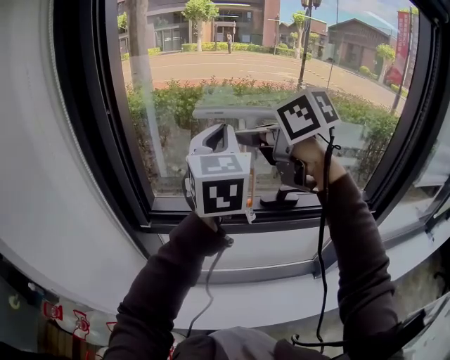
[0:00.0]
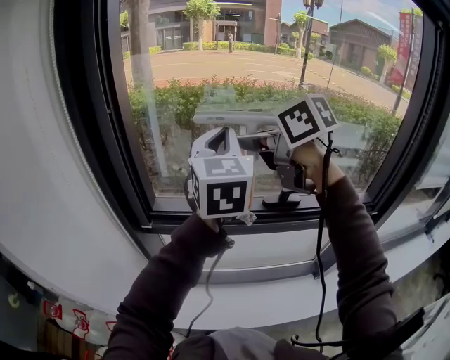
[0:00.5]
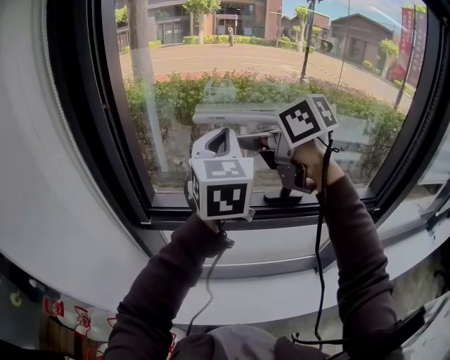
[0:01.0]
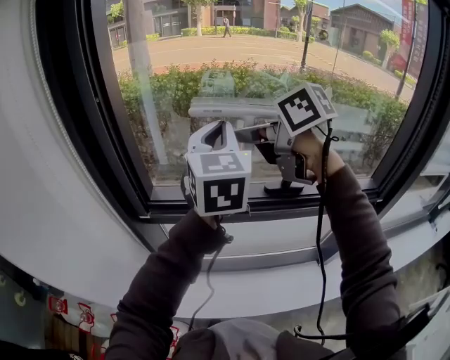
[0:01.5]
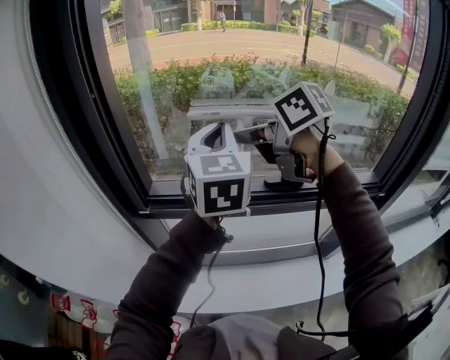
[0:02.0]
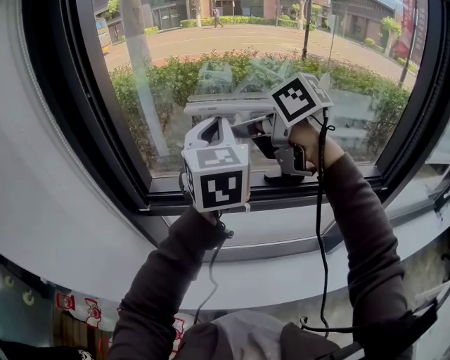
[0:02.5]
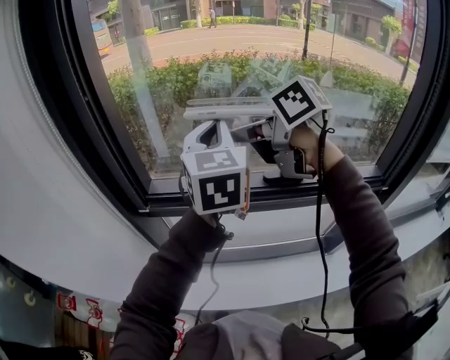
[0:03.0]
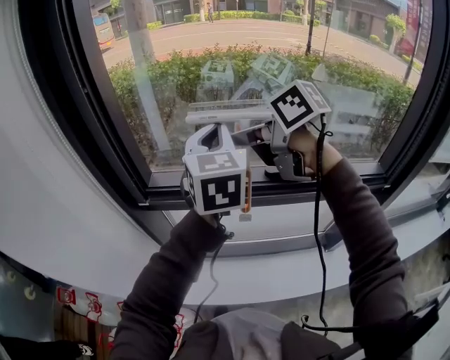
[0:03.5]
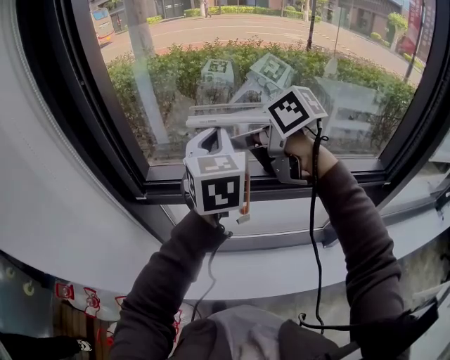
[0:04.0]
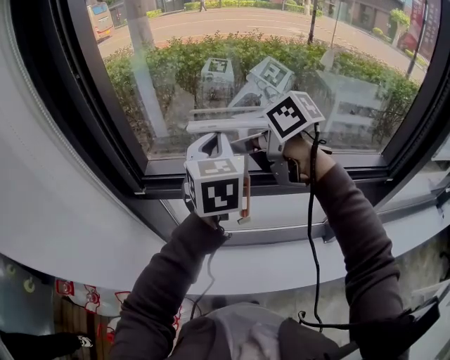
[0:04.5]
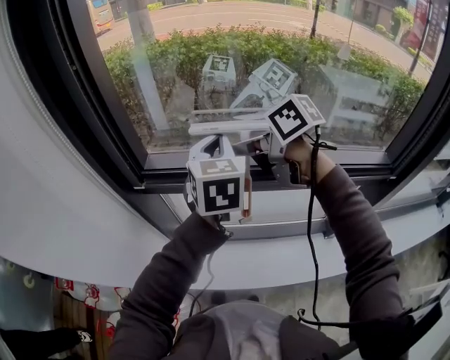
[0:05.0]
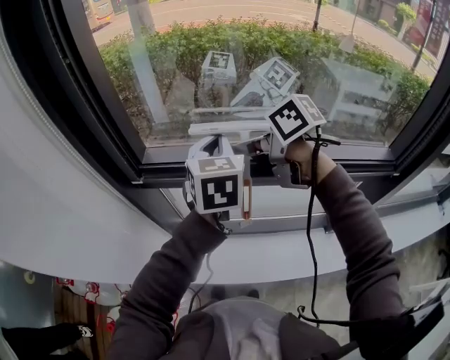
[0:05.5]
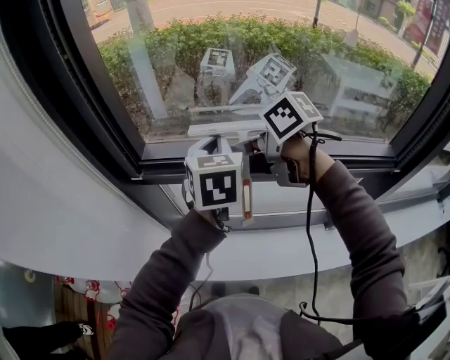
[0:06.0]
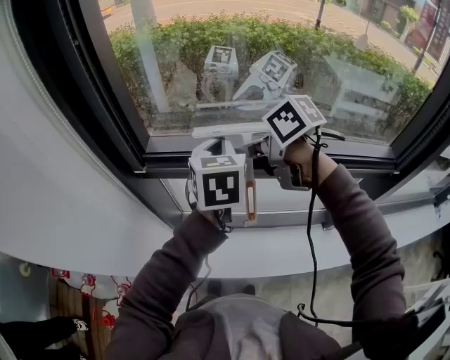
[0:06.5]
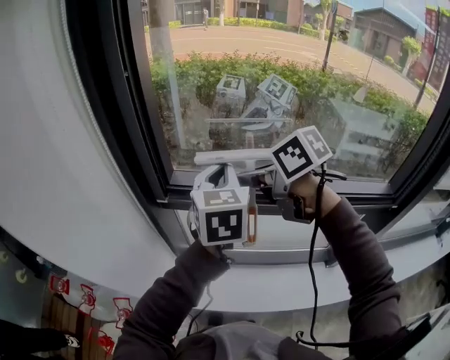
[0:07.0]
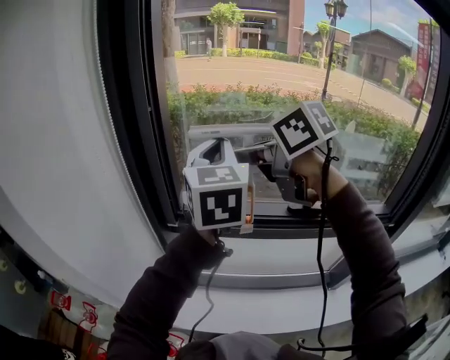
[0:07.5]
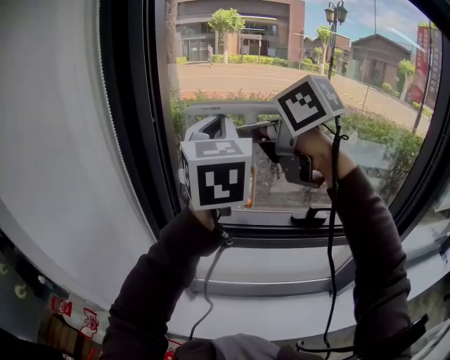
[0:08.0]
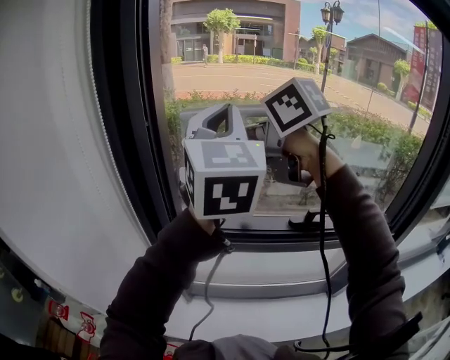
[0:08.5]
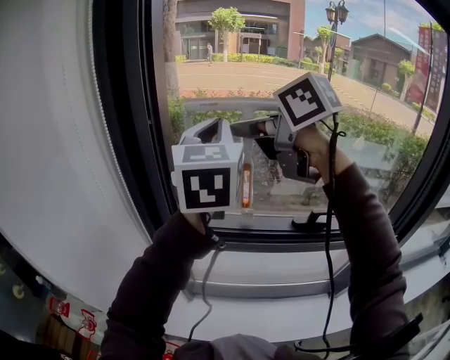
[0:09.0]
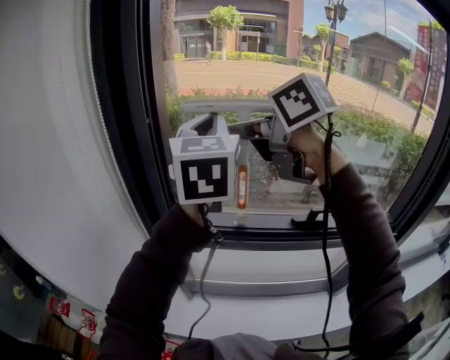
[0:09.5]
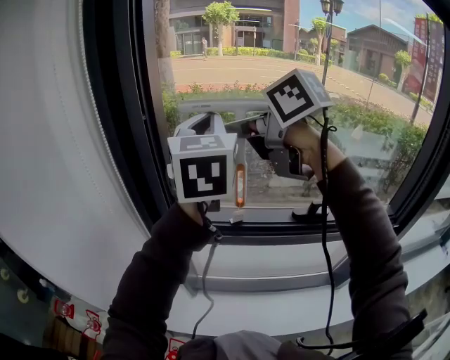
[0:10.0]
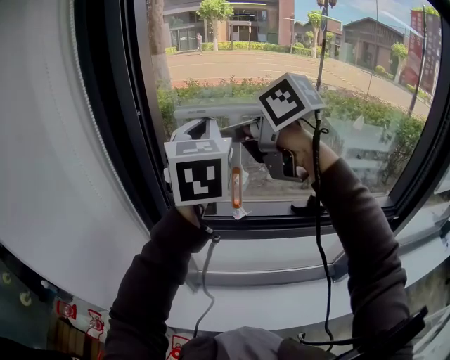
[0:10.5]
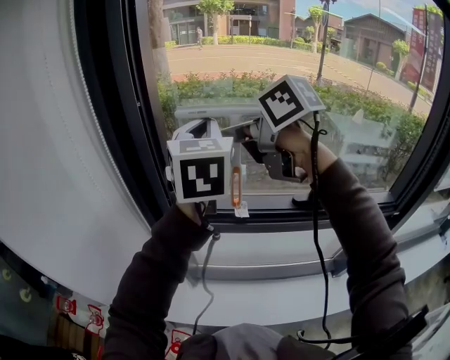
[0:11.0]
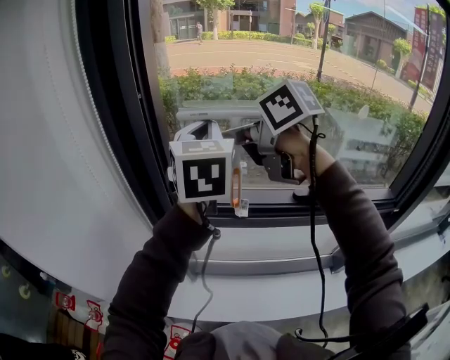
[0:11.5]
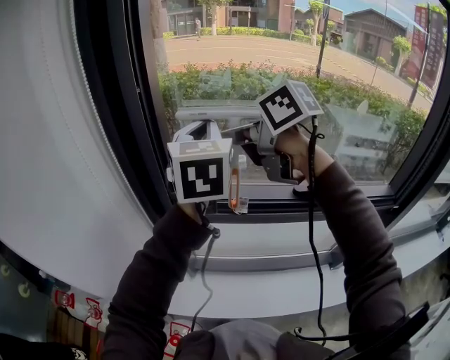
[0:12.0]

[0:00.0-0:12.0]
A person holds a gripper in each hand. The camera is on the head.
0:00.0 to 0:02.0: Both grippers move downward, roughly 5 cm.
0:02.0 to 0:04.0: Both grippers move downward, approximately 5 cm.
0:04.0 to 0:06.0: The two grippers go roughly 10 cm downward.
0:06.0 to 0:08.0: The grippers both shift upward by approximately 25 cm. The right gripper changes its angle by roughly 30 degrees. The left gripper rotates approximately 30 degrees.
0:08.0 to 0:10.0: The grippers stay close to where they were, moving slightly.
0:10.0 to 0:12.0: The grippers both shift downward by some 10 cm.

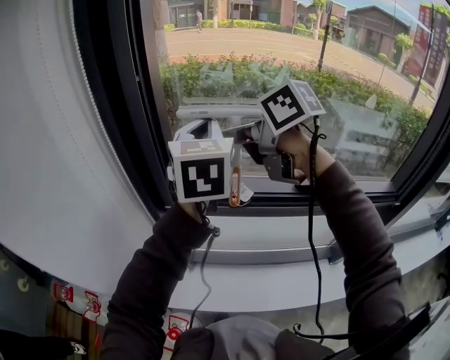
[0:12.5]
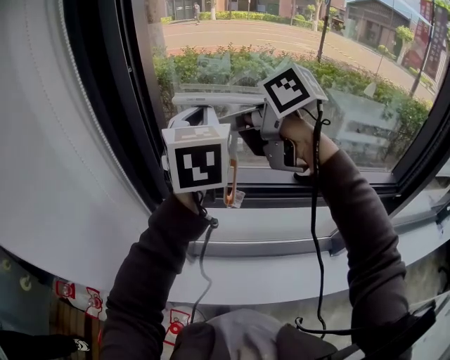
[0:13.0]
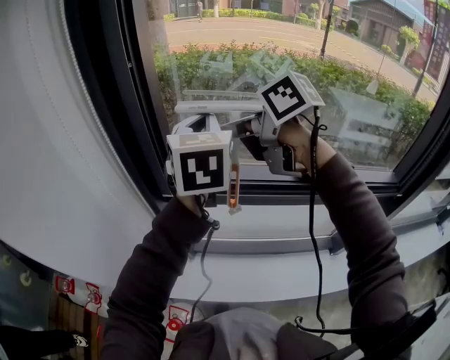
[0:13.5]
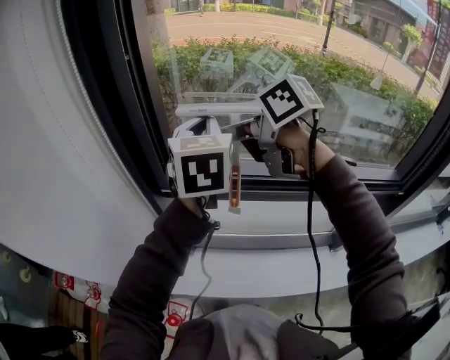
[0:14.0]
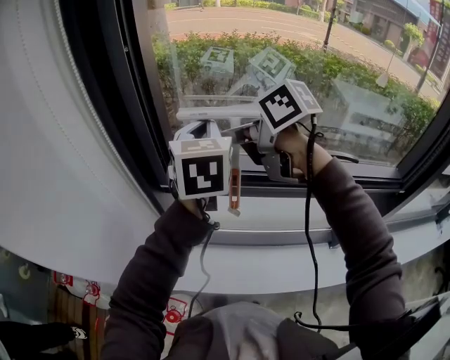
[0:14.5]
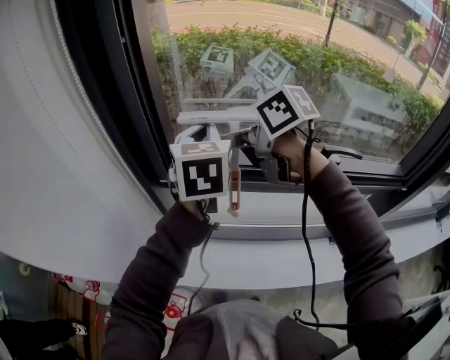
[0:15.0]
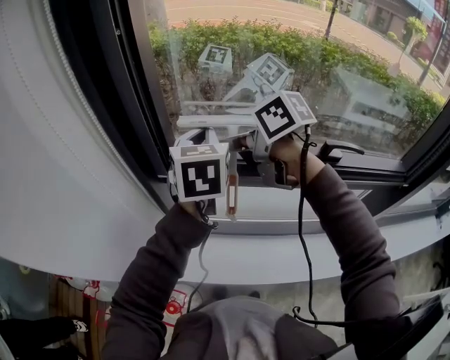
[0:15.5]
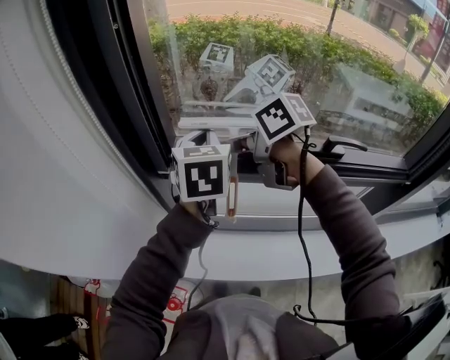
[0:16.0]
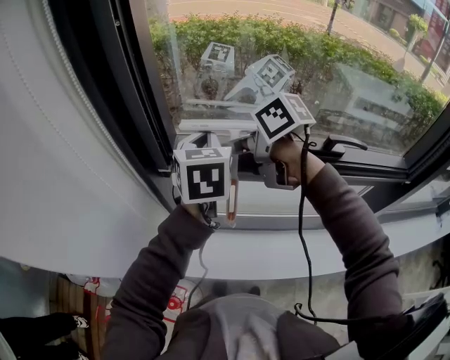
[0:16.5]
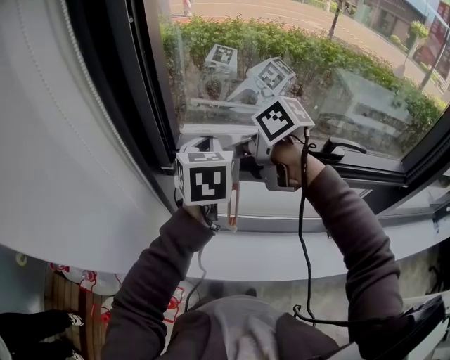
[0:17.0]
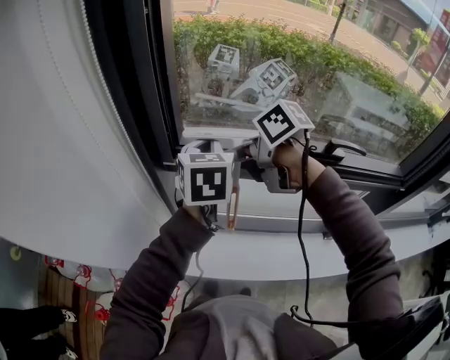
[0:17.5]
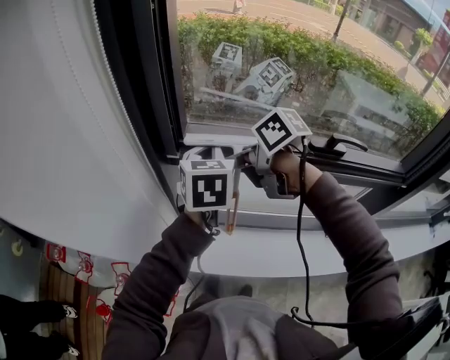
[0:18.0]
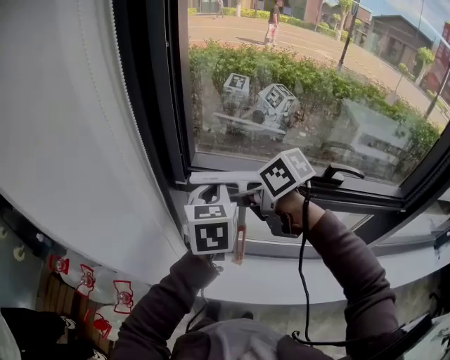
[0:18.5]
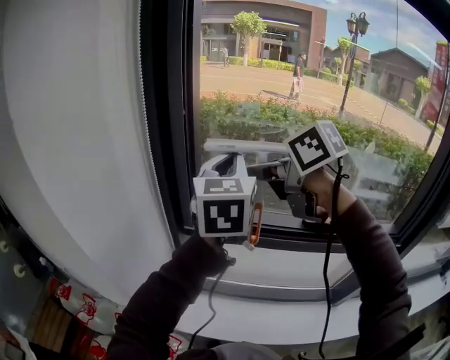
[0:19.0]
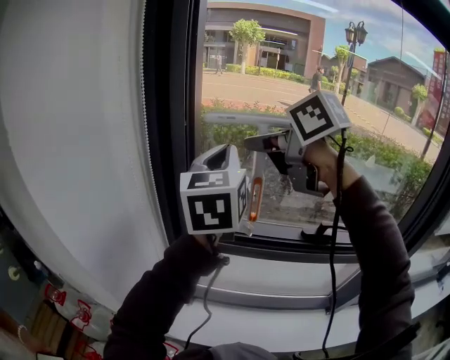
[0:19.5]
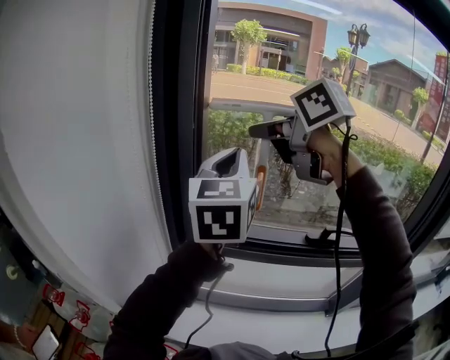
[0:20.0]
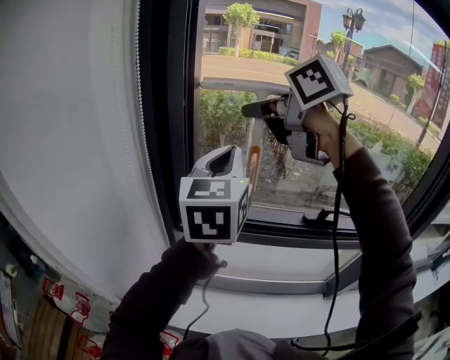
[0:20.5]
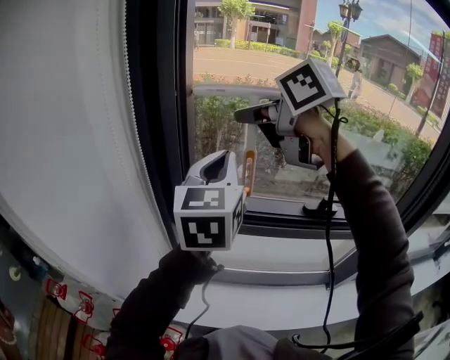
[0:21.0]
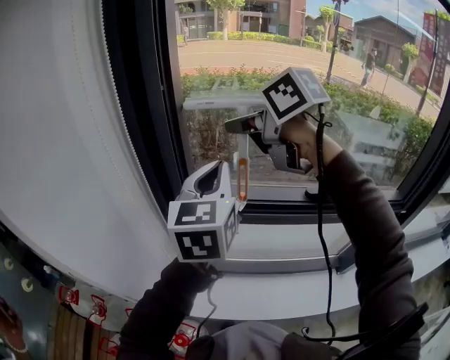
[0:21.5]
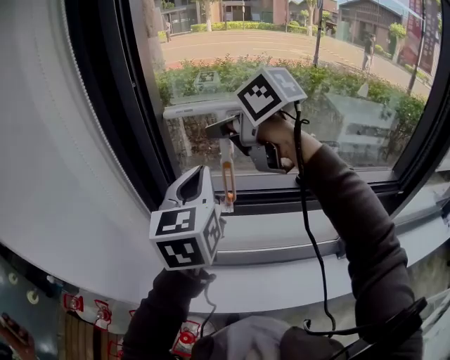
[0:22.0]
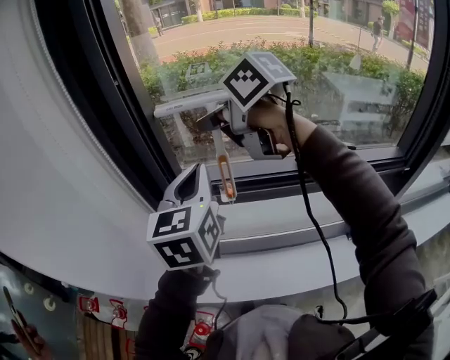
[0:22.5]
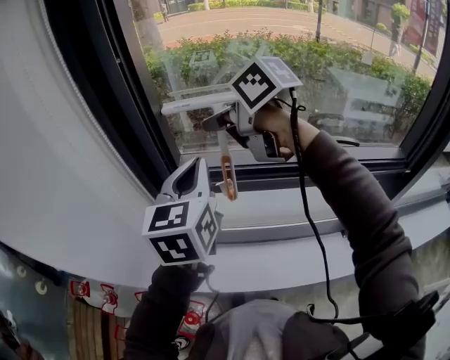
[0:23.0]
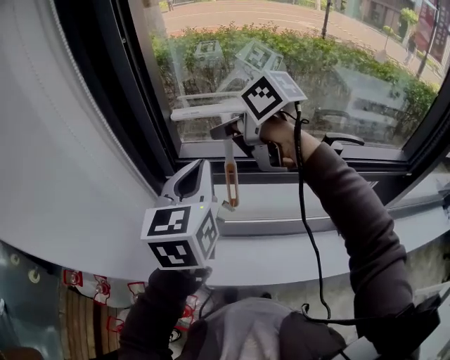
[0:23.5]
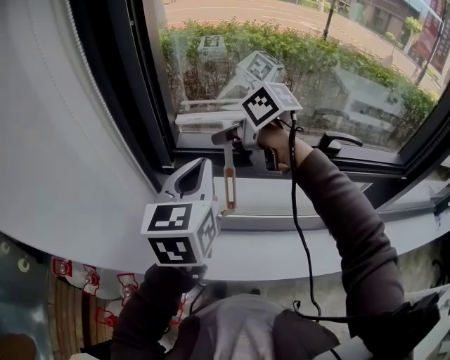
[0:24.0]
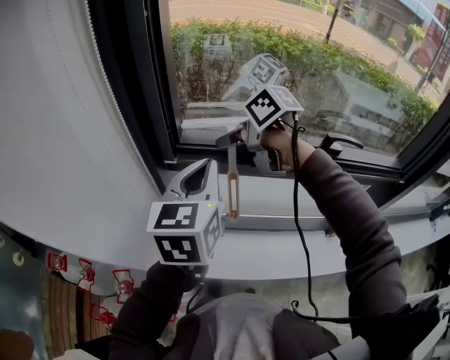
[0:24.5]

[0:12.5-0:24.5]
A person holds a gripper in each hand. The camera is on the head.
0:12.5 to 0:14.5: The grippers both shift downward by roughly 5 cm.
0:14.5 to 0:16.5: The grippers both shift downward by about 10 cm.
0:16.5 to 0:18.5: The right gripper moves backward, about 5 cm; the left gripper ends up about 10 cm from where it was.
0:18.5 to 0:20.5: Both grippers travel together upward, some 25 cm. The left gripper rotates approximately 20 degrees; the right gripper turns by some 30 degrees.
0:20.5 to 0:22.5: Both grippers travel together downward, some 10 cm.
0:22.5 to 0:24.5: The right gripper moves downward, about 15 cm. The left gripper heads downward, covering about 5 cm.

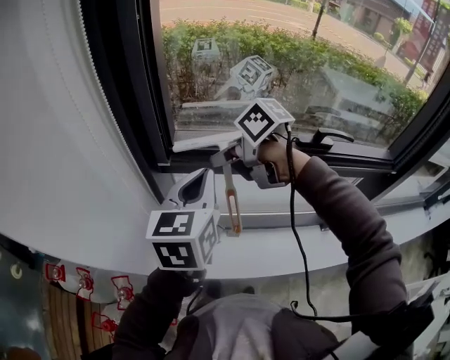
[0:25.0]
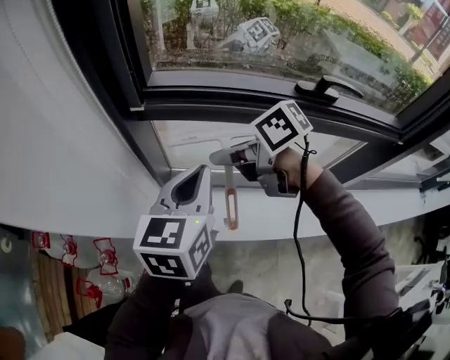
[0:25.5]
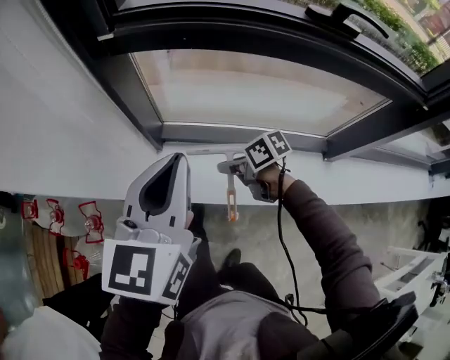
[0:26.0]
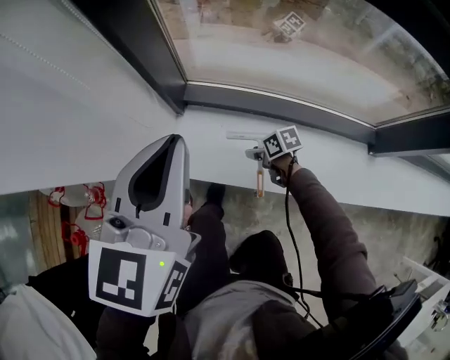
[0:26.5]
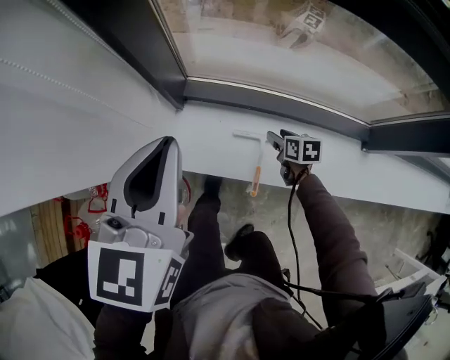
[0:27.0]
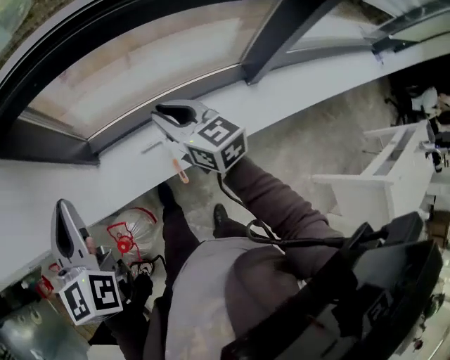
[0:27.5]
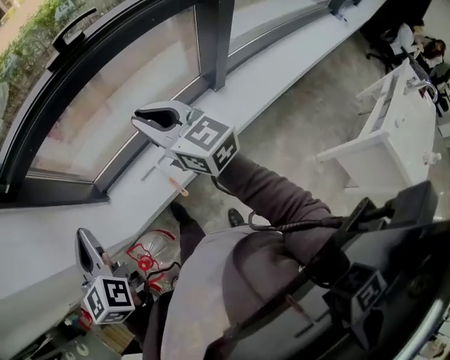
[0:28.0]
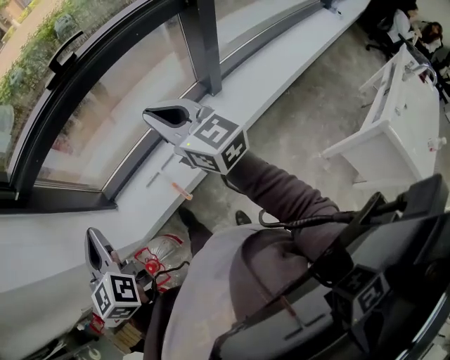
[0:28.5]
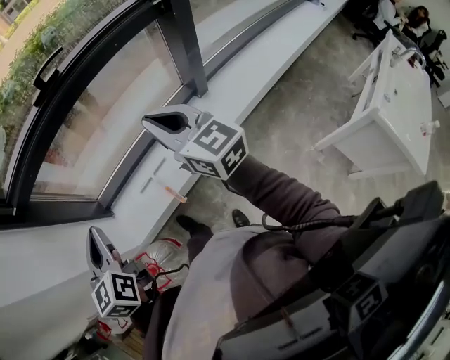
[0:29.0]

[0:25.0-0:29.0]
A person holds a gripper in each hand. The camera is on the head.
0:25.0 to 0:27.0: The right gripper moves downward, about 60 cm, turns by about 30 degrees, and opens up. Meanwhile the left gripper goes some 25 cm downward.
0:27.0 to 0:29.0: The left gripper shifts approximately 25 cm backward, to the right and upward; the right gripper heads upward and backward, covering about 60 cm, tilts its fingers approximately 50 degrees upward, and closes.
